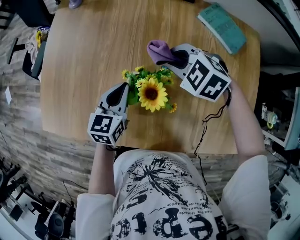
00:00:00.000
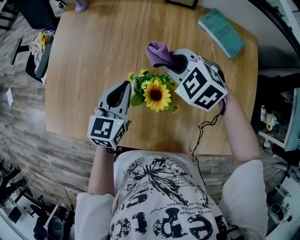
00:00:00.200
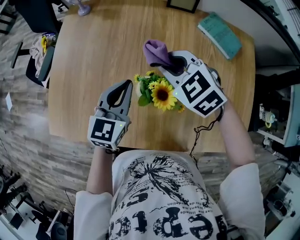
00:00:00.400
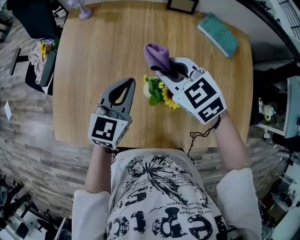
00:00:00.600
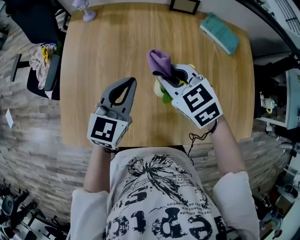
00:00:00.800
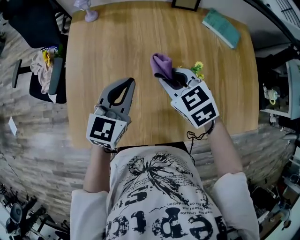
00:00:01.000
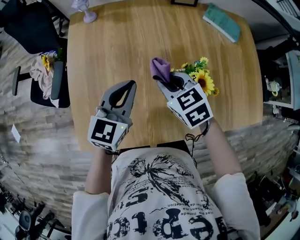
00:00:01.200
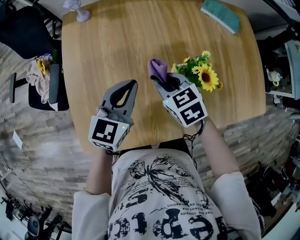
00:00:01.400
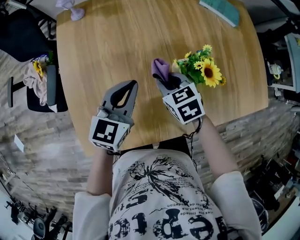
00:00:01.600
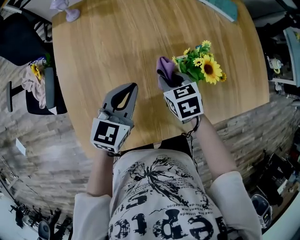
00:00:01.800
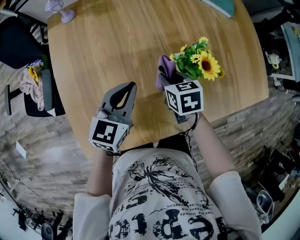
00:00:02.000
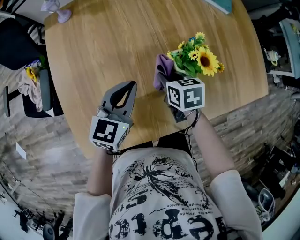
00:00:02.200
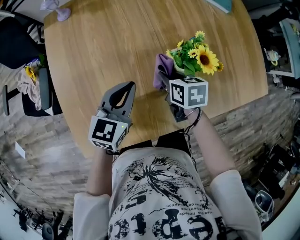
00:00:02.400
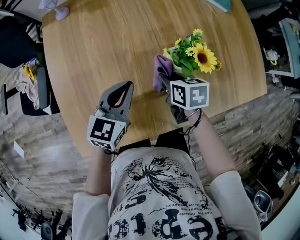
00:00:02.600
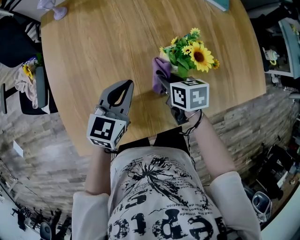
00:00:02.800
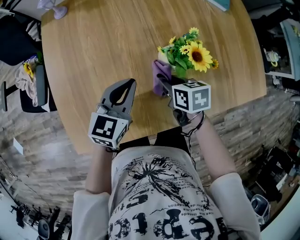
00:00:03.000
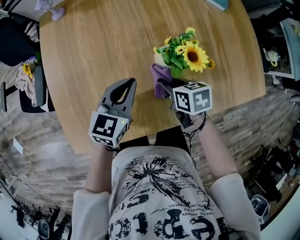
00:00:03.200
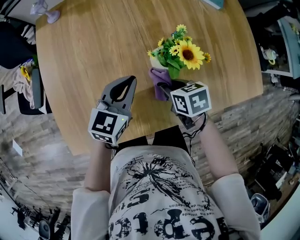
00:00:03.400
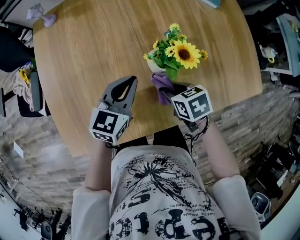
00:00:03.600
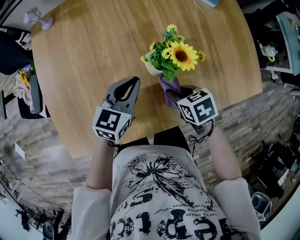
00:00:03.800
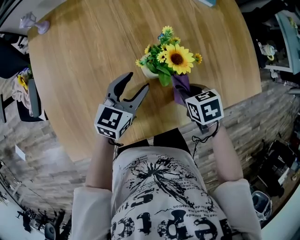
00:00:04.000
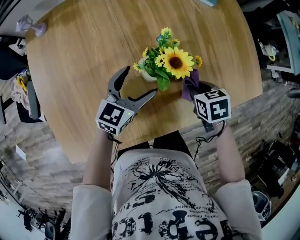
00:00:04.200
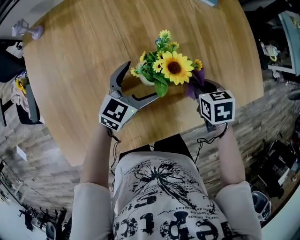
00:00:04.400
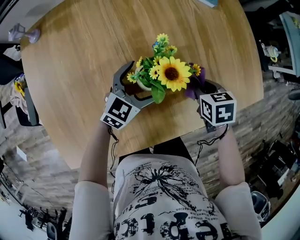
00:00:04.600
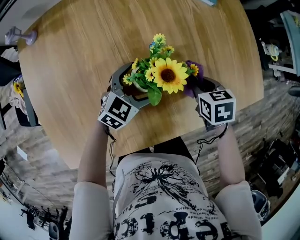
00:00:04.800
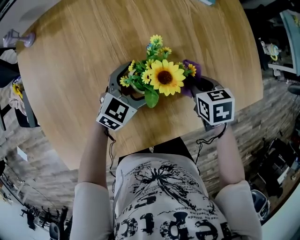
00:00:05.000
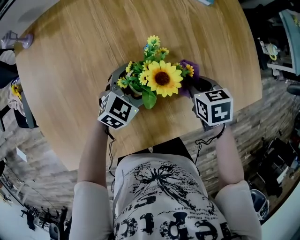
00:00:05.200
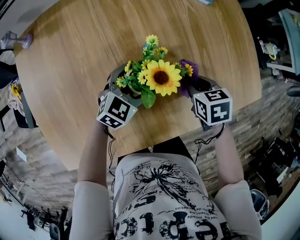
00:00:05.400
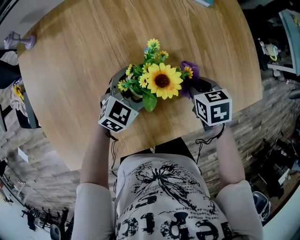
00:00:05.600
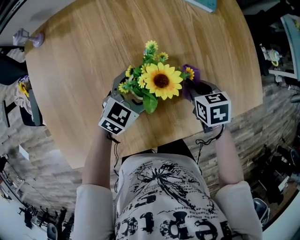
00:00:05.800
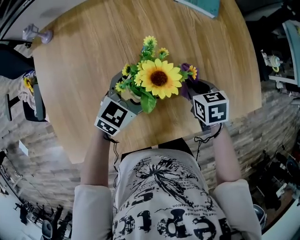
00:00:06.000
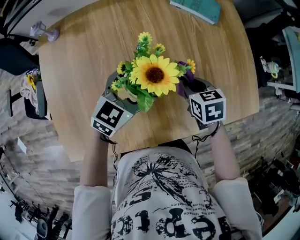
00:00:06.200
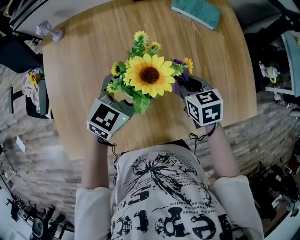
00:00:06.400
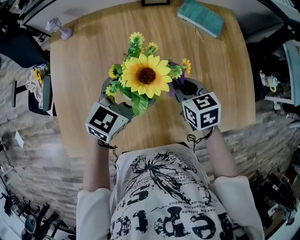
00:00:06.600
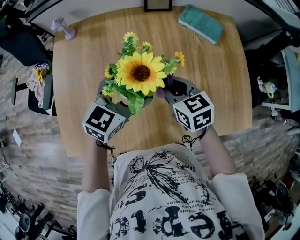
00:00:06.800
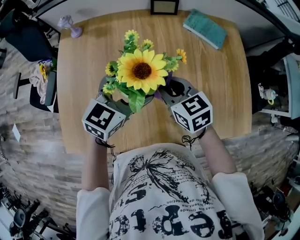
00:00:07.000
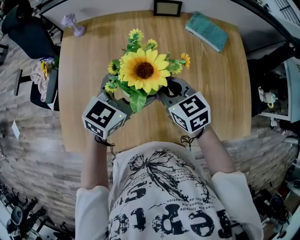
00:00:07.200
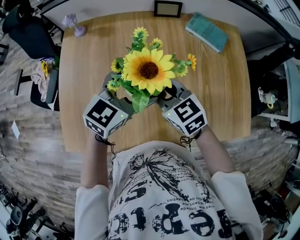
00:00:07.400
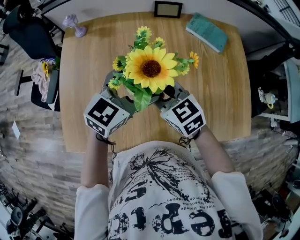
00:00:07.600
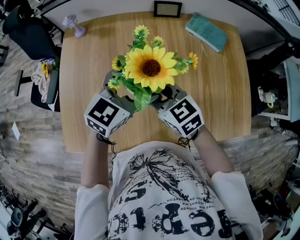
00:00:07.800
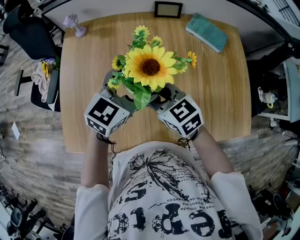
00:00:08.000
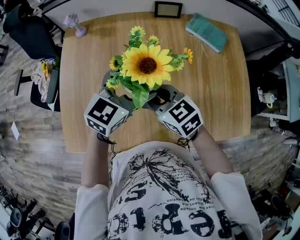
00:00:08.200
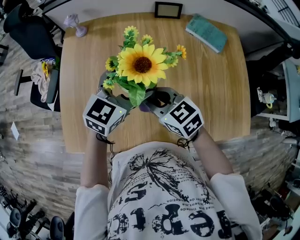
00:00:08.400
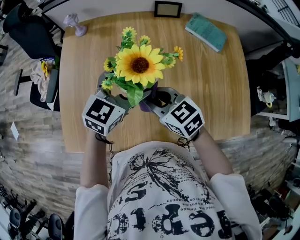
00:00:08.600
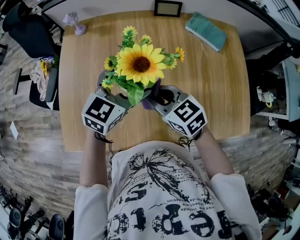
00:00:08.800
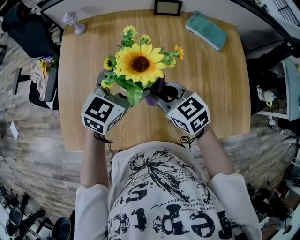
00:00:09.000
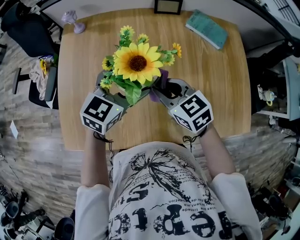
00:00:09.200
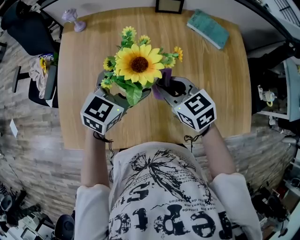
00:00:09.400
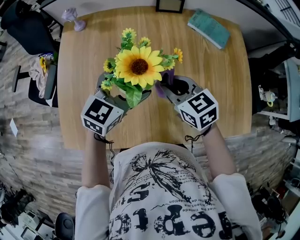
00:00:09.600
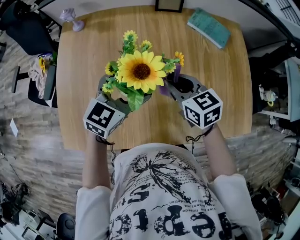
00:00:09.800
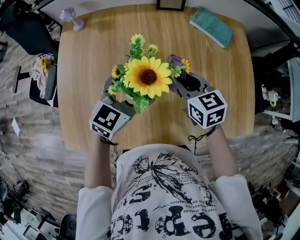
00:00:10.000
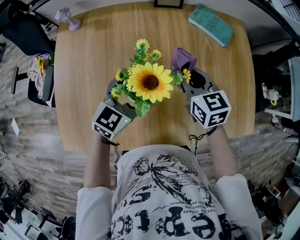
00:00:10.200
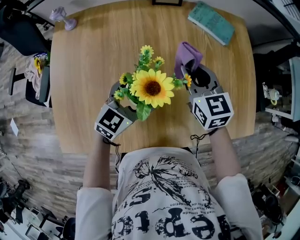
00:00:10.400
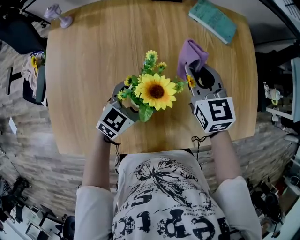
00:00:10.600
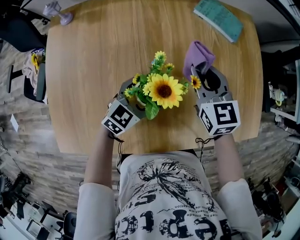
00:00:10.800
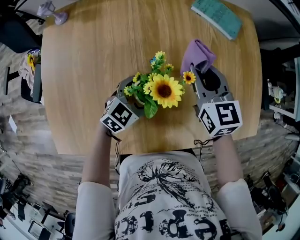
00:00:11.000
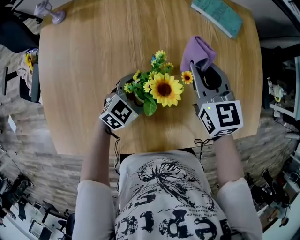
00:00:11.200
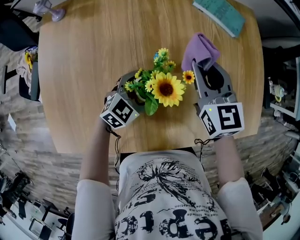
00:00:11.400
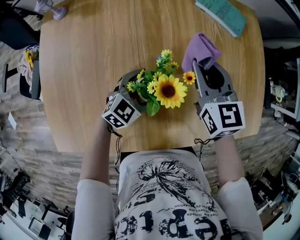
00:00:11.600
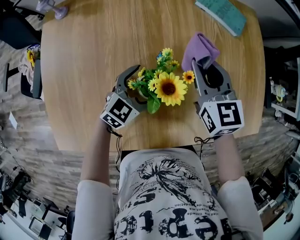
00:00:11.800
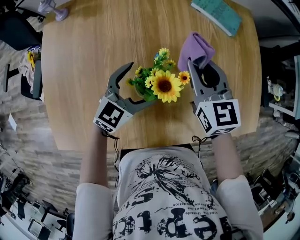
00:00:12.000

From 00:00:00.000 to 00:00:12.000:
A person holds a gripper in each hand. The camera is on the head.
From 00:00:00.000 to 00:00:01.600: The right gripper ends up some 20 cm from where it was, and twists about 50 degrees clockwise, seen from behind. The left gripper ends up some 15 cm from where it was, and changes its angle by approximately 30 degrees.
From 00:00:01.600 to 00:00:03.000: Both grippers travel together to the right, approximately 5 cm. The right gripper changes its angle by some 30 degrees.
From 00:00:03.000 to 00:00:04.400: The left gripper changes place by some 15 cm, and opens its fingers; the right gripper moves about 20 cm, and turns by approximately 20 degrees.
From 00:00:04.400 to 00:00:06.000: The left gripper shifts by roughly 5 cm.
From 00:00:06.000 to 00:00:07.600: The left gripper is displaced upward and to the left by approximately 15 cm. The right gripper travels to the left and upward by roughly 25 cm, and turns by approximately 50 degrees.
From 00:00:07.600 to 00:00:09.000: There are only small adjustments of the grippers.
From 00:00:09.000 to 00:00:10.400: The right gripper shifts about 15 cm to the right and forward, and rotates roughly 30 degrees, while the left gripper is displaced downward and to the right by some 10 cm.
From 00:00:10.400 to 00:00:12.000: The left gripper travels downward and back again, some 10 cm each way.

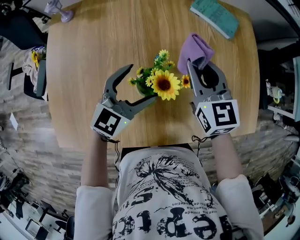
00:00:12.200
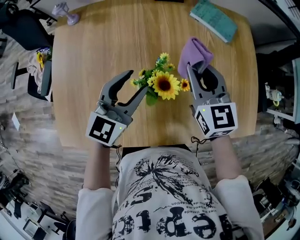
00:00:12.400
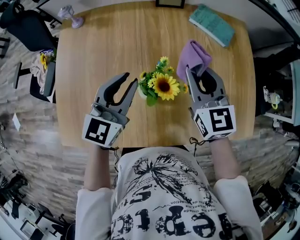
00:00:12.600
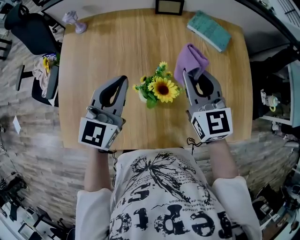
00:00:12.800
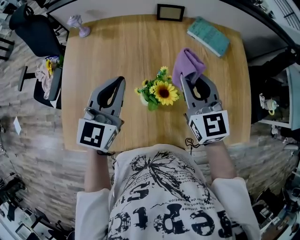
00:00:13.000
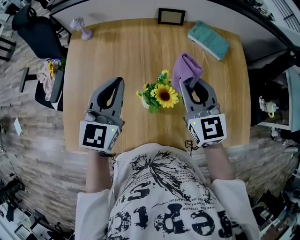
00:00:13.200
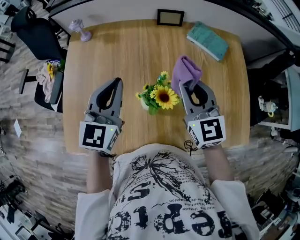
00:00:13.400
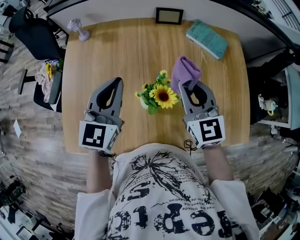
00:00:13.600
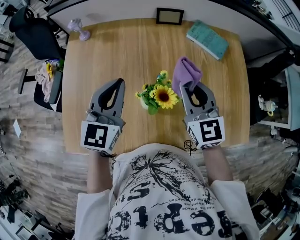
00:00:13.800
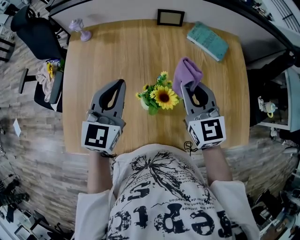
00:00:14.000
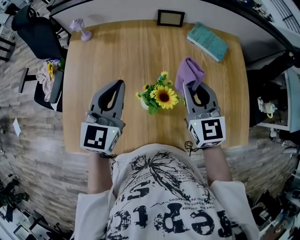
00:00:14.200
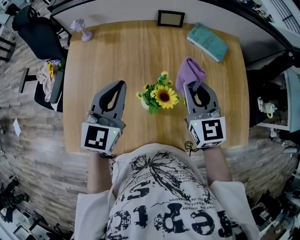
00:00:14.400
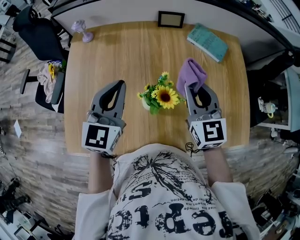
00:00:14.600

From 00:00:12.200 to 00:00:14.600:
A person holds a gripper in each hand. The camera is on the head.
From 00:00:12.200 to 00:00:13.400: The right gripper is displaced upward by roughly 10 cm, while the left gripper goes about 15 cm upward and to the left, swivels approximately 30 degrees, and closes up.
From 00:00:13.400 to 00:00:14.600: The grippers move only a little.

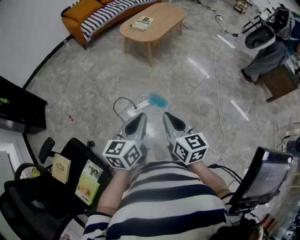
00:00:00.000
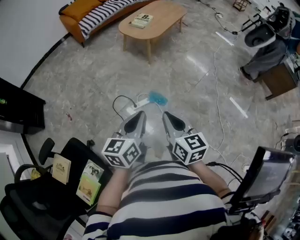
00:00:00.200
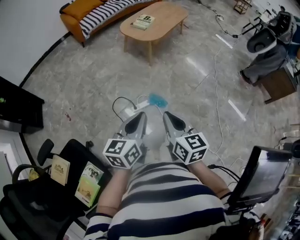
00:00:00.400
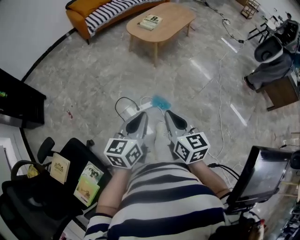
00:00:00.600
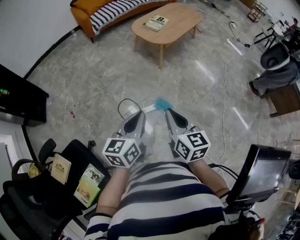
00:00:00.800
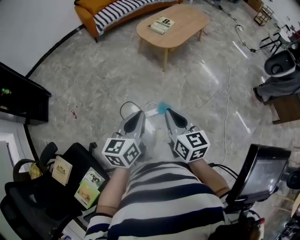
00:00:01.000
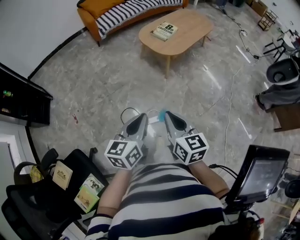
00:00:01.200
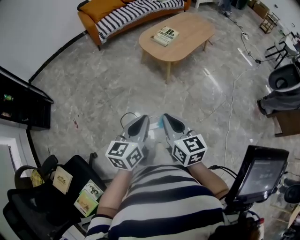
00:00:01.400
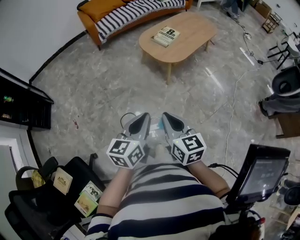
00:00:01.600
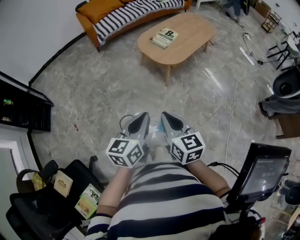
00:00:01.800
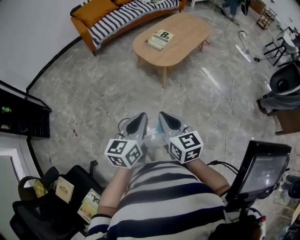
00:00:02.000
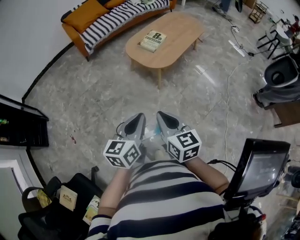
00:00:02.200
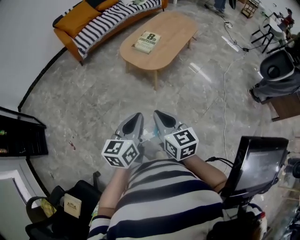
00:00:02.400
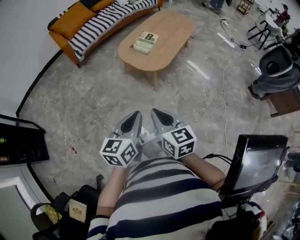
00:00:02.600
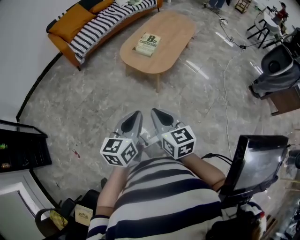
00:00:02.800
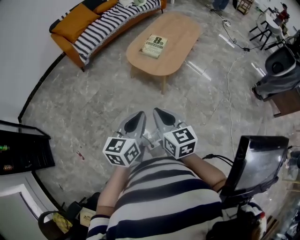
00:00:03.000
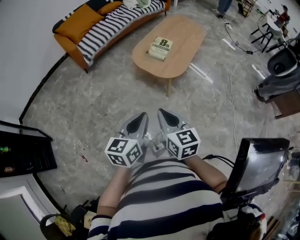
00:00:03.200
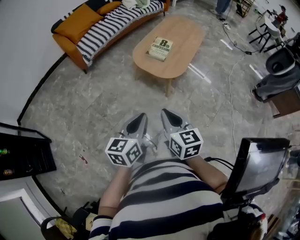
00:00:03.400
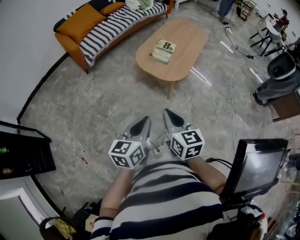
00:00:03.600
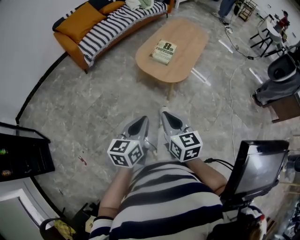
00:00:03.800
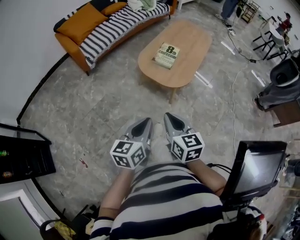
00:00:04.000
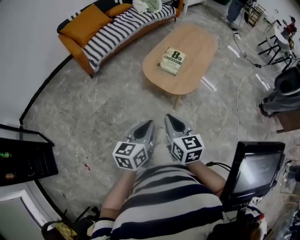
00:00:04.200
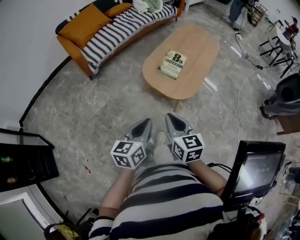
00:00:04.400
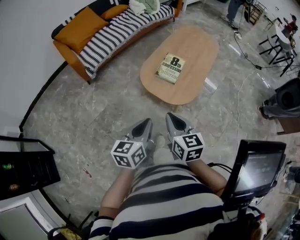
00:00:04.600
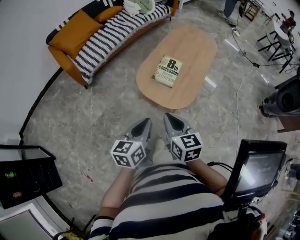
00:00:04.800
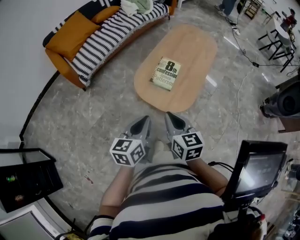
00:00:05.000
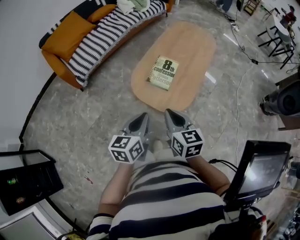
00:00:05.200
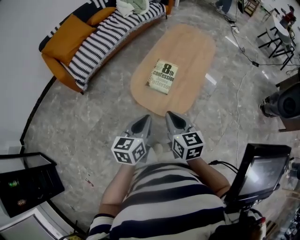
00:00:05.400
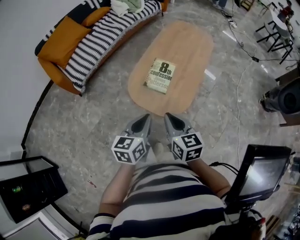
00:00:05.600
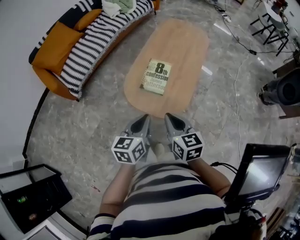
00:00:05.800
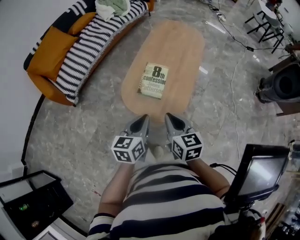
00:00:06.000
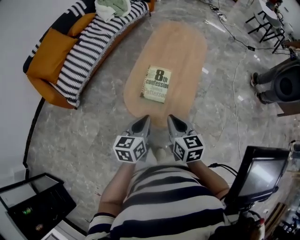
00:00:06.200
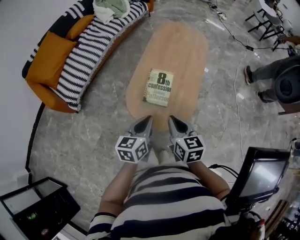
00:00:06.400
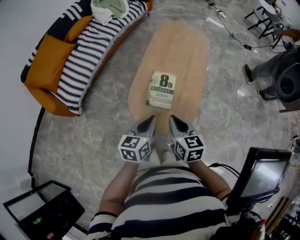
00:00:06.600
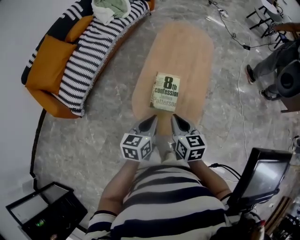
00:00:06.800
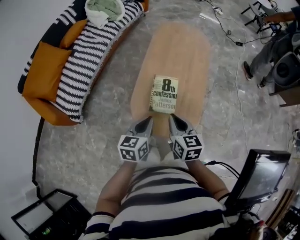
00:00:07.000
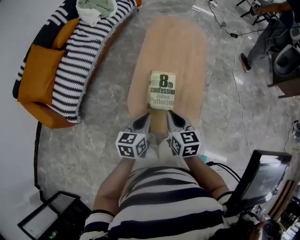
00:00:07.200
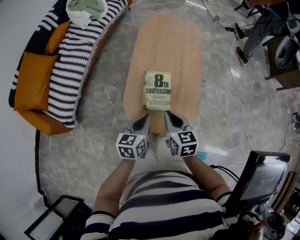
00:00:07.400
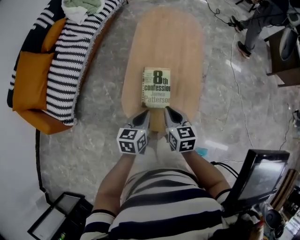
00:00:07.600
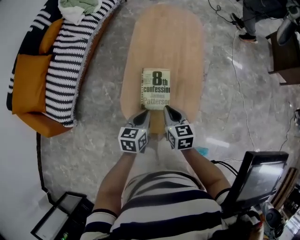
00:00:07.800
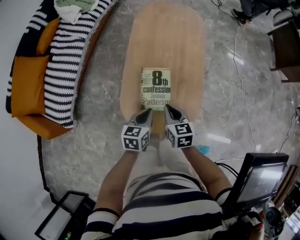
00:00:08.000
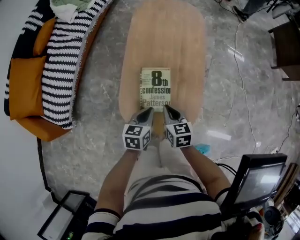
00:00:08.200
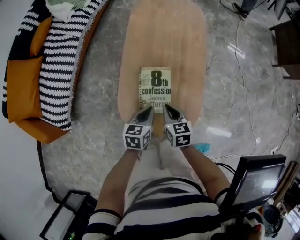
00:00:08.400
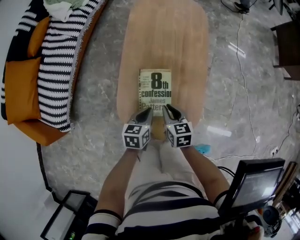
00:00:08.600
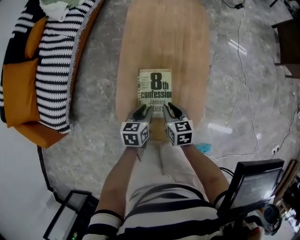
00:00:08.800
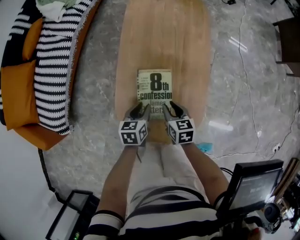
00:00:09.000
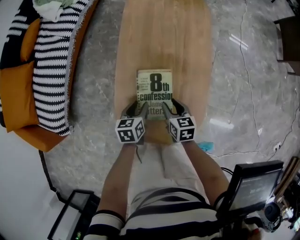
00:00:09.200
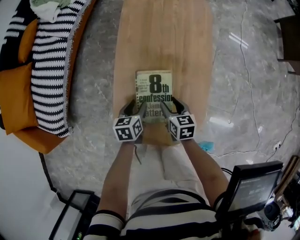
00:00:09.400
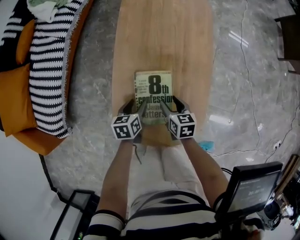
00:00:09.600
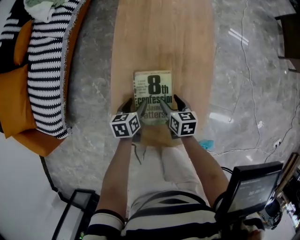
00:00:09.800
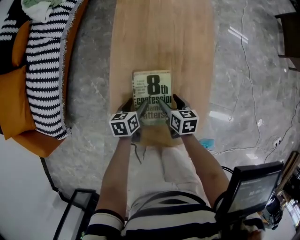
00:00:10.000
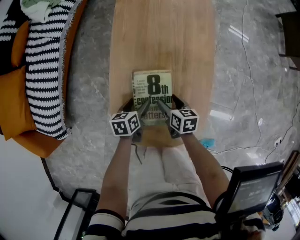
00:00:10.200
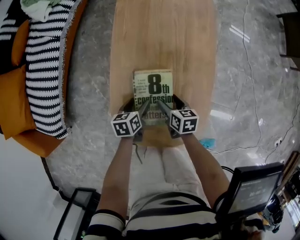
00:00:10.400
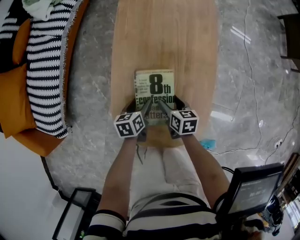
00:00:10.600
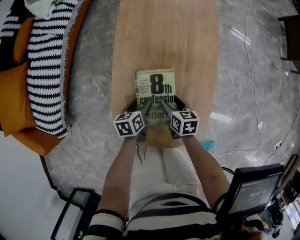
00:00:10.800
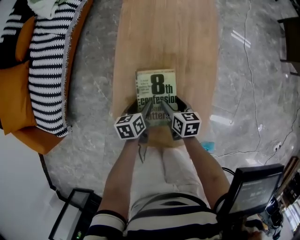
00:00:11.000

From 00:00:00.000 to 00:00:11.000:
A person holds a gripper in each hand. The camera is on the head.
From 00:00:00.000 to 00:00:01.600: The two grippers go approximately 30 cm forward.
From 00:00:01.600 to 00:00:03.200: Both grippers move forward and to the left, about 20 cm.
From 00:00:03.200 to 00:00:04.800: The grippers both shift forward by approximately 25 cm.
From 00:00:04.800 to 00:00:06.200: Both grippers move forward, approximately 15 cm.
From 00:00:06.200 to 00:00:07.800: The grippers both shift forward and downward by roughly 20 cm. The left gripper rotates about 20 degrees.
From 00:00:07.800 to 00:00:09.400: Both grippers travel together downward and forward, about 20 cm. The right gripper opens, while the left gripper opens.
From 00:00:09.400 to 00:00:11.000: The grippers move only a little.
